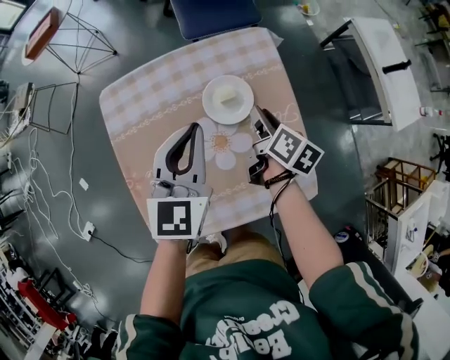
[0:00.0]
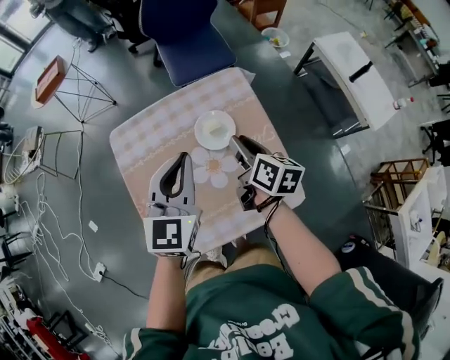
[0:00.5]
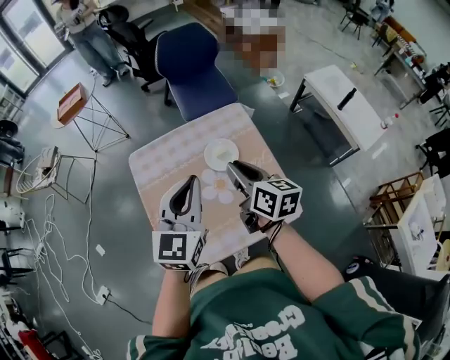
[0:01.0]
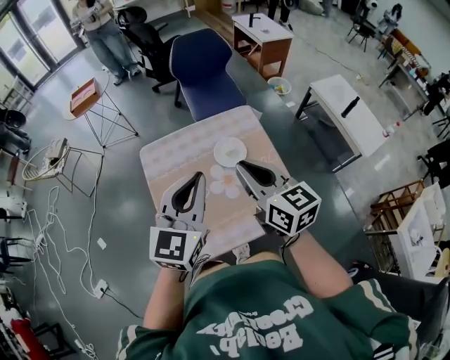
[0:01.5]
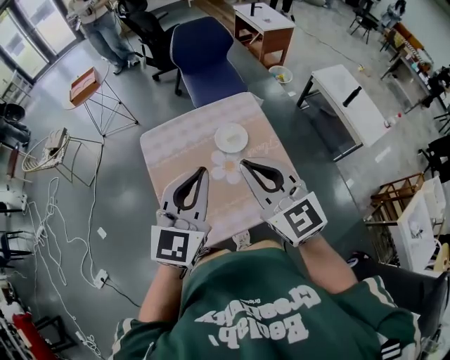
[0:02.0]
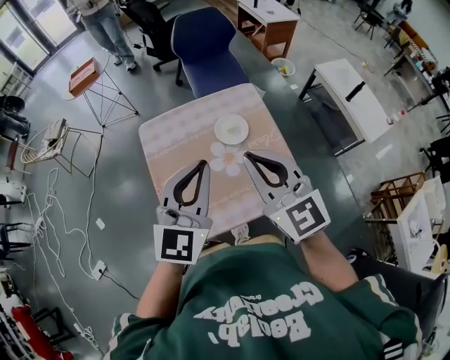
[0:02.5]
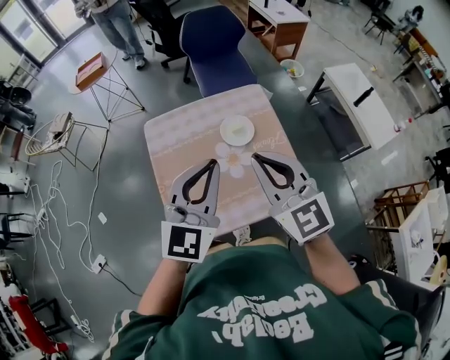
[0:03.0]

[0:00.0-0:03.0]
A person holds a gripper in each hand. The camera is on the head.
0:00.0 to 0:01.5: Both grippers travel together upward and backward, about 30 cm. The right gripper rolls counterclockwise, seen from behind, by approximately 40 degrees.
0:01.5 to 0:03.0: The right gripper swivels about 30 degrees.

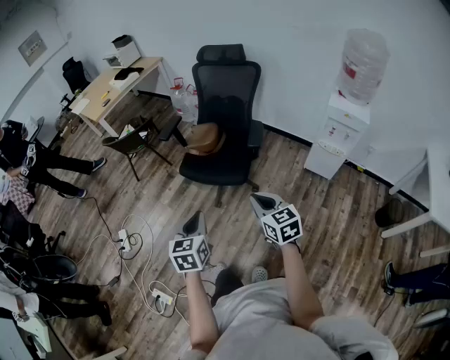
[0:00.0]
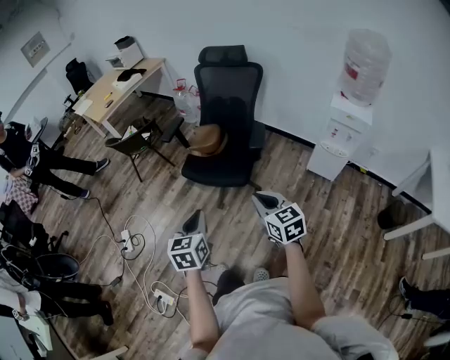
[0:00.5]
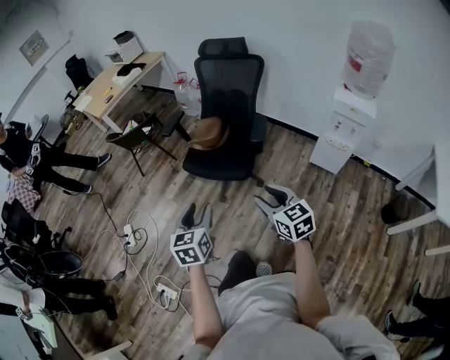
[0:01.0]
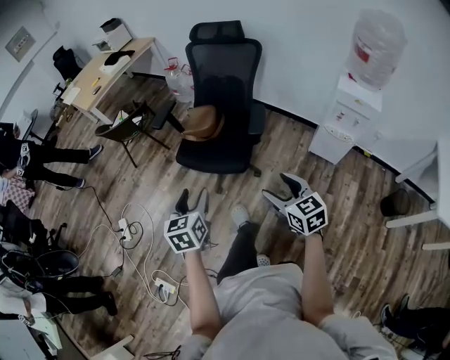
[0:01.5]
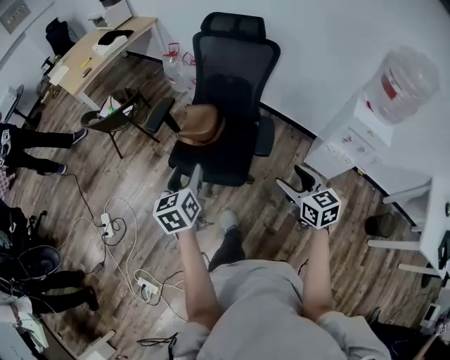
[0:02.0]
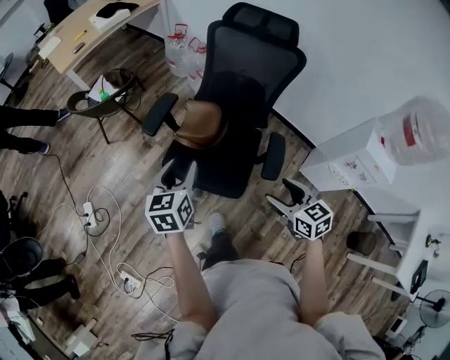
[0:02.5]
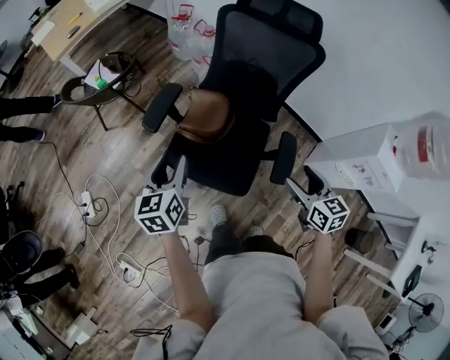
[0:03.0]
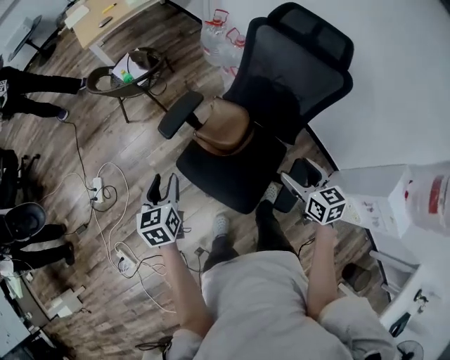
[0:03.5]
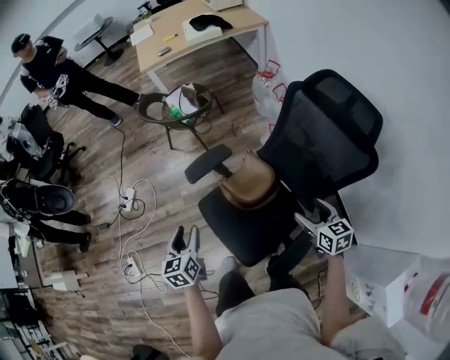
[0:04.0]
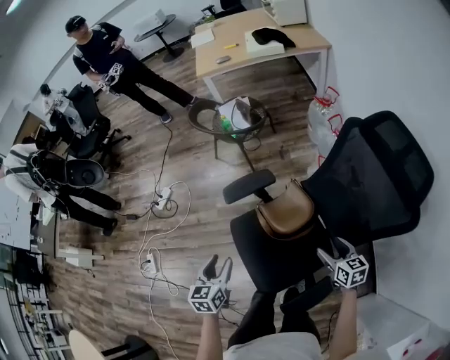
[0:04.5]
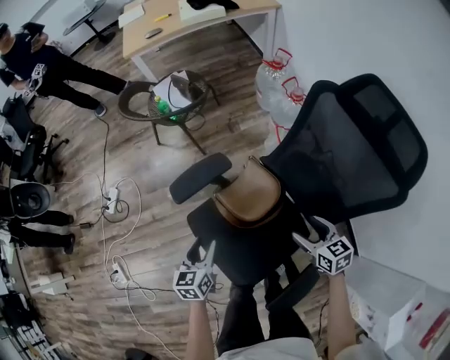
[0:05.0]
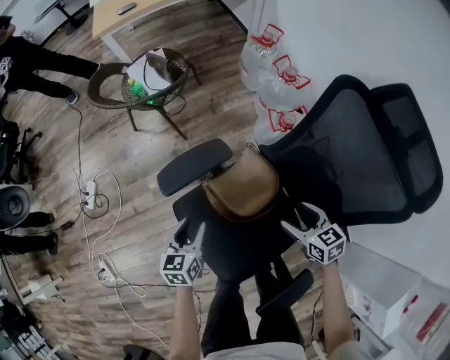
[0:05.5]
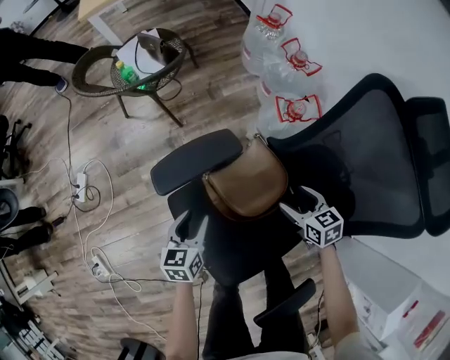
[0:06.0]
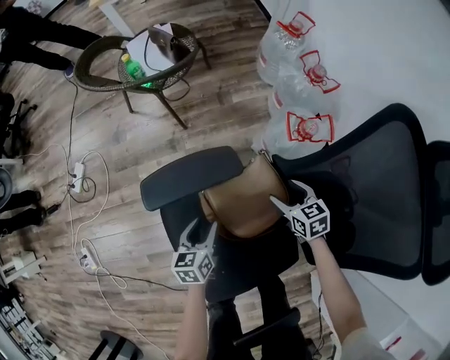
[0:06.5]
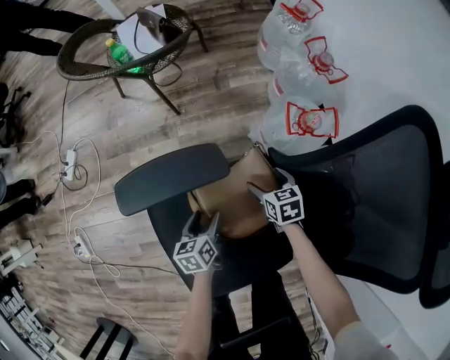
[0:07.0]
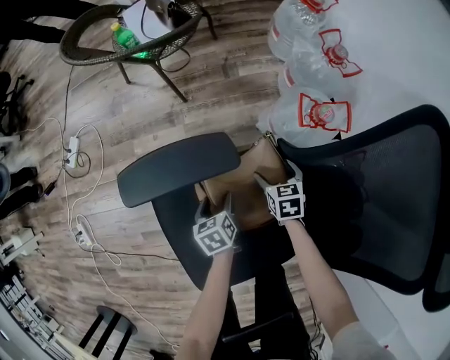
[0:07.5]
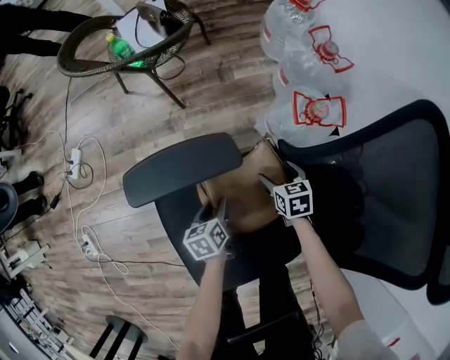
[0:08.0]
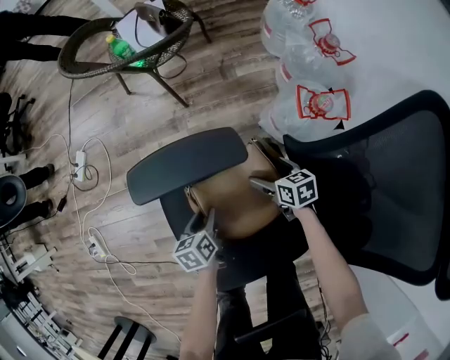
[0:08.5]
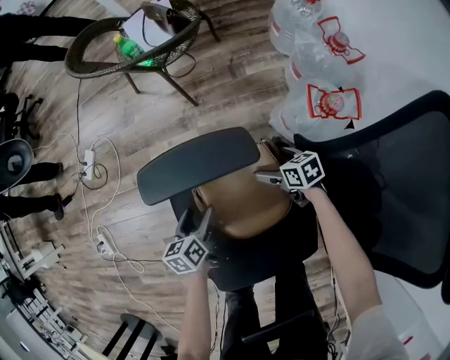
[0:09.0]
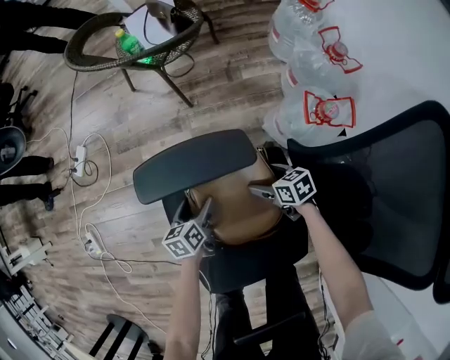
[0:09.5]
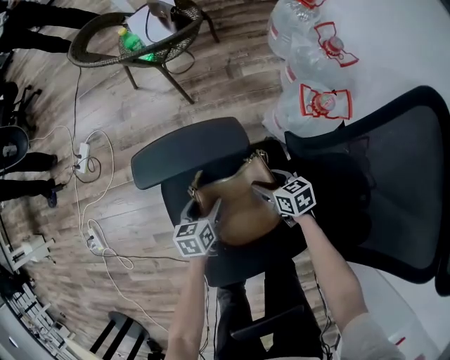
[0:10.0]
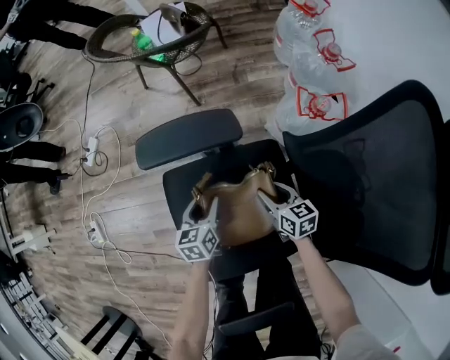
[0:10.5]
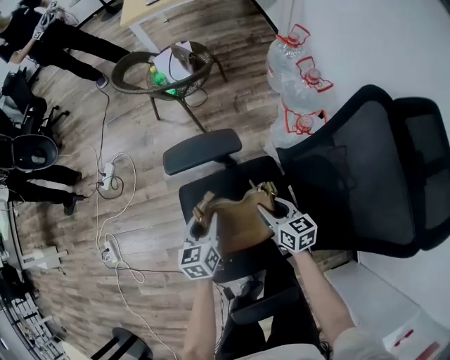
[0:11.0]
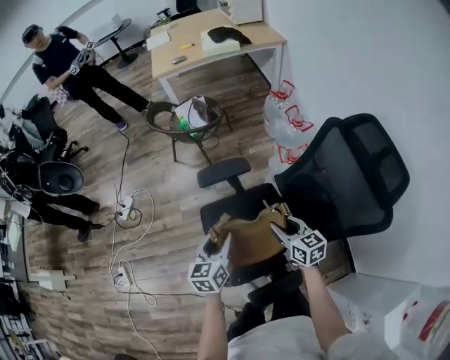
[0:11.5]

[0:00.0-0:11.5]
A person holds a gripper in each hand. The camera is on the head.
0:00.0 to 0:02.0: The right gripper heads forward and to the right, covering some 25 cm, and opens up; the left gripper travels forward by approximately 30 cm, and opens up.
0:02.0 to 0:04.0: The left gripper shifts by approximately 25 cm, and swivels about 40 degrees, while the right gripper changes place by about 50 cm, and changes its angle by some 40 degrees.
0:04.0 to 0:06.0: The grippers both shift downward and forward by some 35 cm. The left gripper turns by some 20 degrees.
0:06.0 to 0:07.5: The right gripper heads downward and forward, covering about 20 cm, while the left gripper travels downward and to the right by some 20 cm, and changes its angle by approximately 40 degrees.
0:07.5 to 0:09.5: The two grippers go about 10 cm to the left. The right gripper changes its angle by approximately 30 degrees; the left gripper closes, then reopens.
0:09.5 to 0:11.5: Both grippers travel together upward and backward, about 50 cm. The right gripper rotates approximately 40 degrees, and closes its fingers. Meanwhile the left gripper turns by some 30 degrees, and closes up.

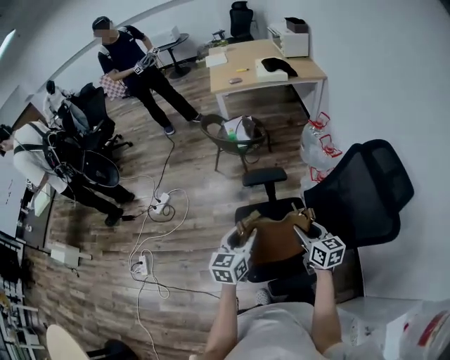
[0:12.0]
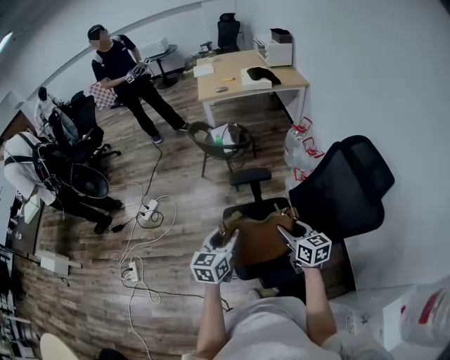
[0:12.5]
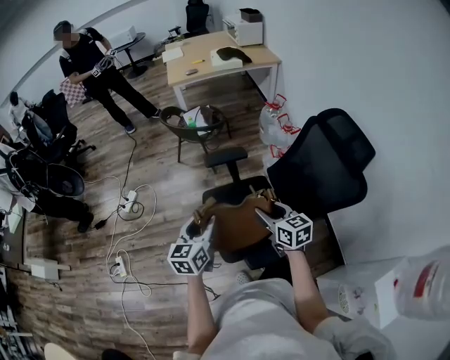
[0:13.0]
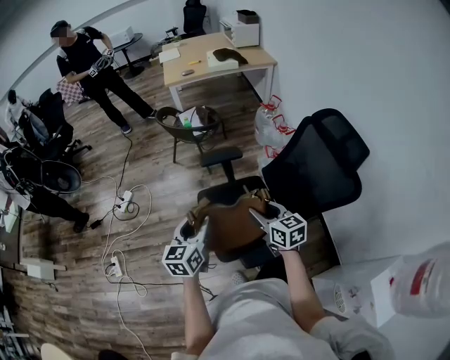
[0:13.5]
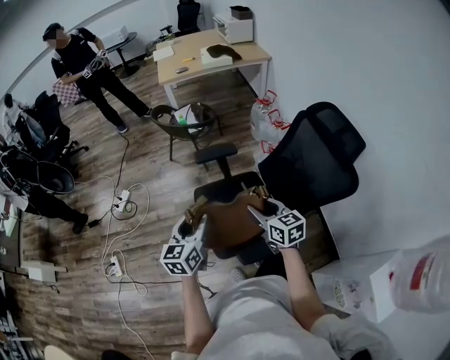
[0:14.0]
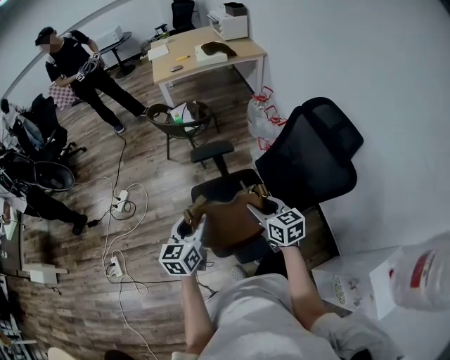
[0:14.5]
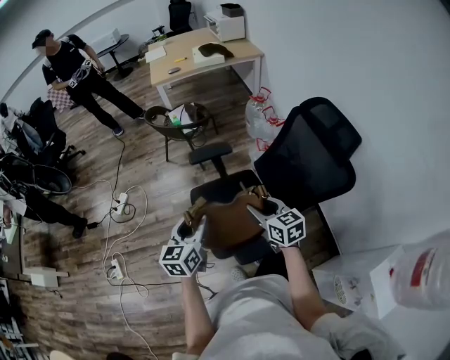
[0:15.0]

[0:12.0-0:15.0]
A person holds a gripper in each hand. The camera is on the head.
0:12.0 to 0:13.5: The grippers both shift backward by approximately 5 cm.
0:13.5 to 0:15.0: The grippers stay close to where they were, moving slightly.

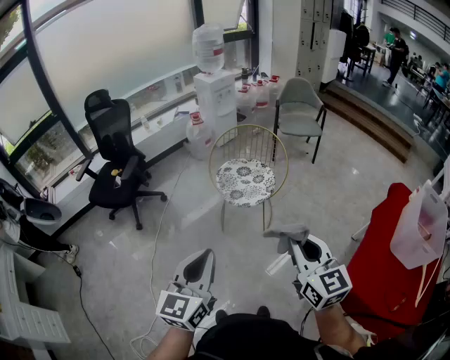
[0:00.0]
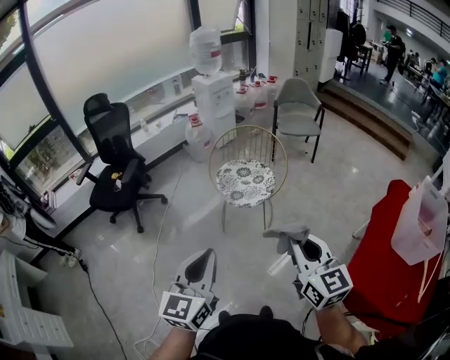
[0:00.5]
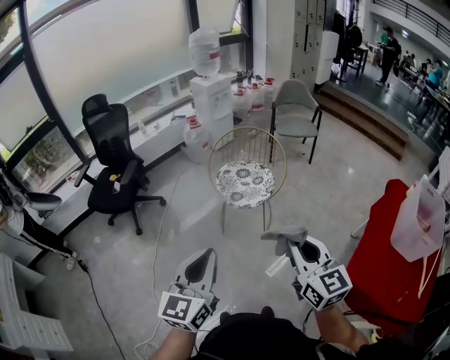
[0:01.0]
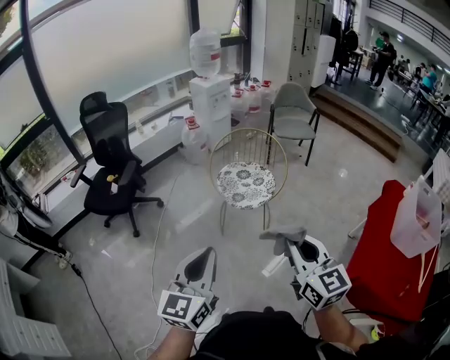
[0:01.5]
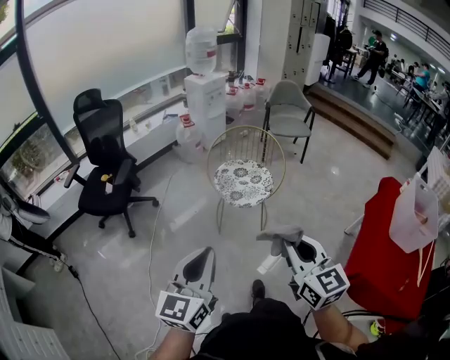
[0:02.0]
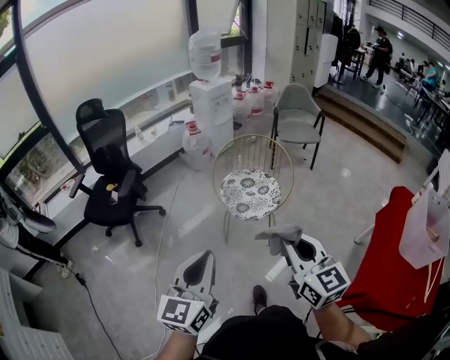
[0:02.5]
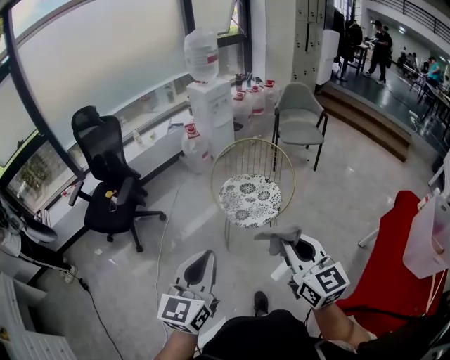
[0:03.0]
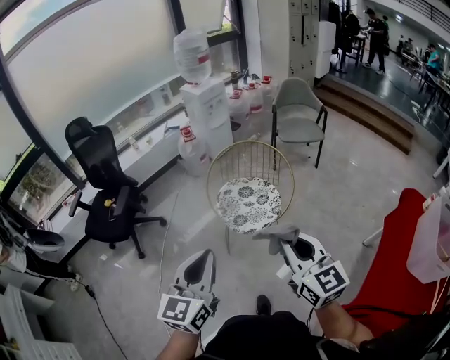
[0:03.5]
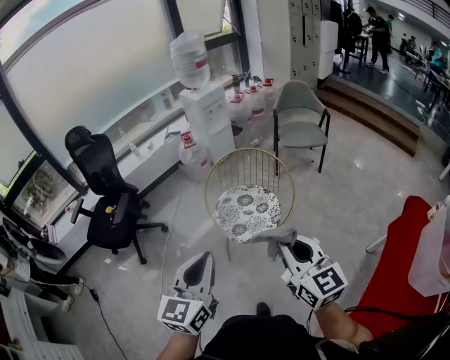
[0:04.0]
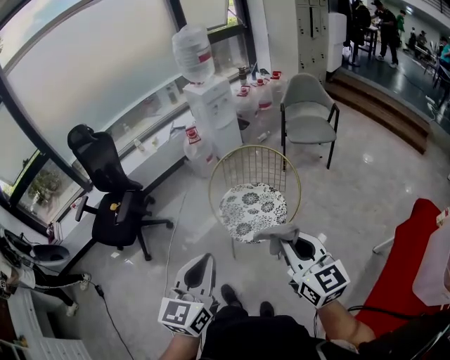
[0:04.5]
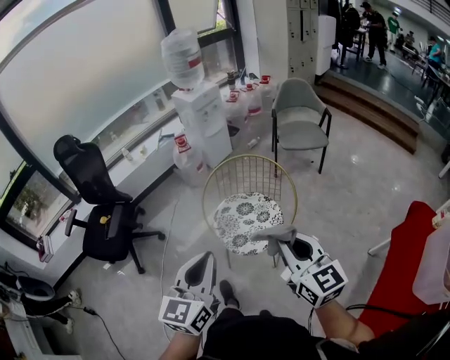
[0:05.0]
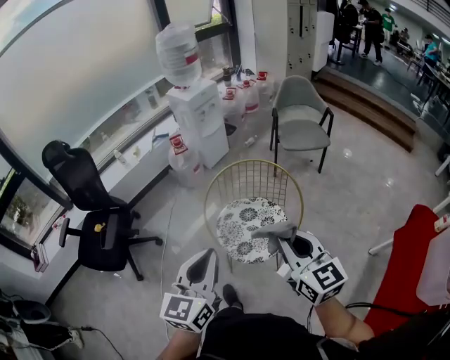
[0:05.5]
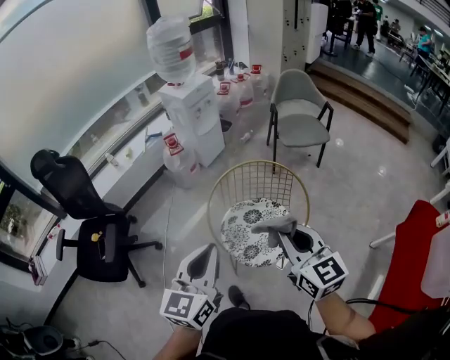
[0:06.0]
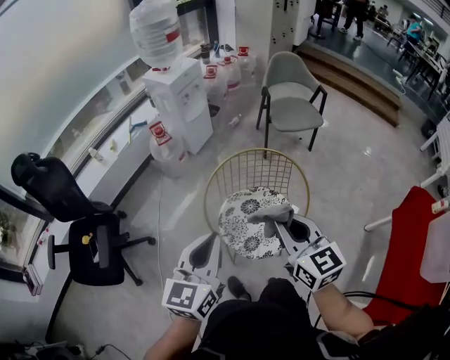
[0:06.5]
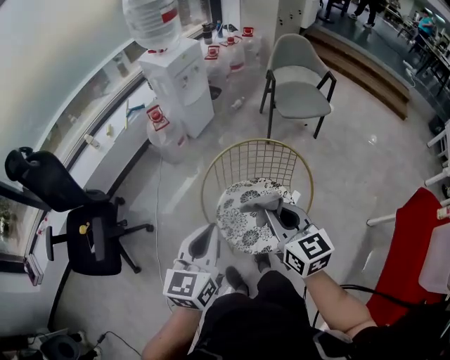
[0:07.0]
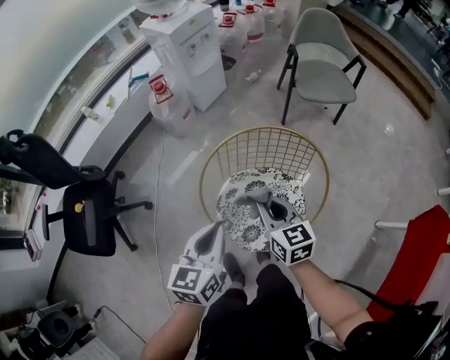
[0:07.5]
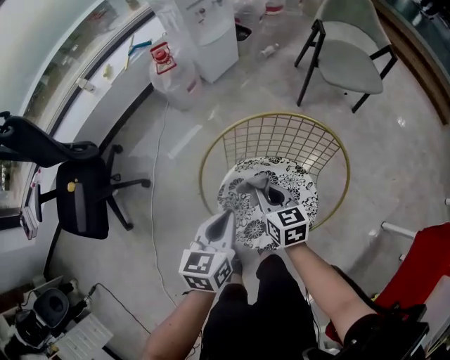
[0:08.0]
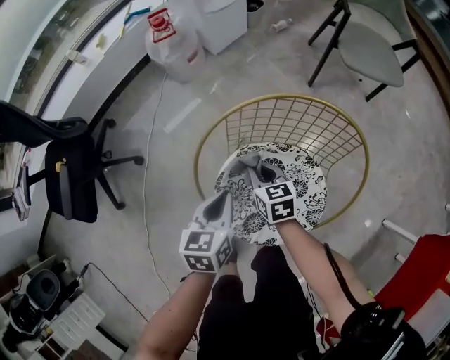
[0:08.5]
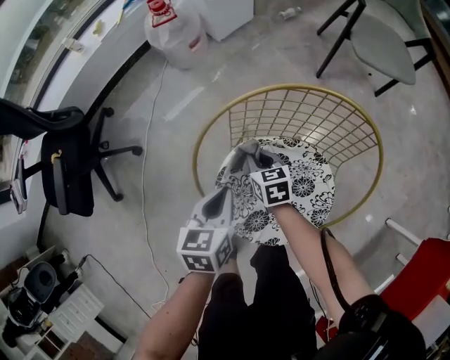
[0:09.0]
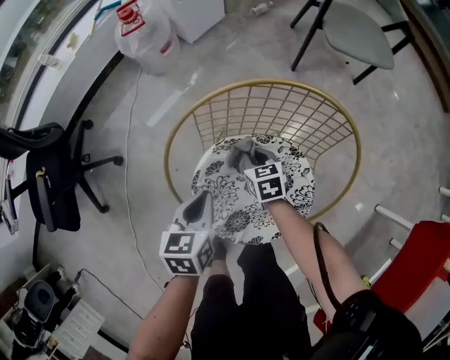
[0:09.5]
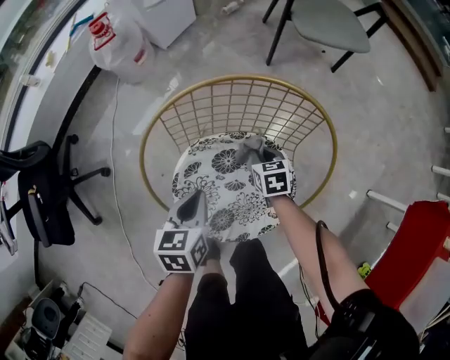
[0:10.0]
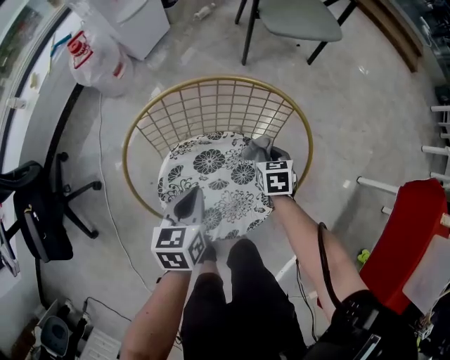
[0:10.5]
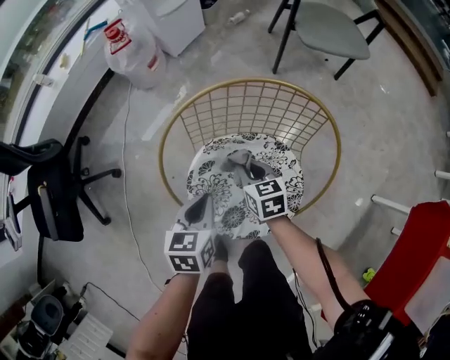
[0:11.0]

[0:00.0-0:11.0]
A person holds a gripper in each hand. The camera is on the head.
0:00.0 to 0:02.0: Both grippers move to the left, some 10 cm.
0:02.0 to 0:03.5: The right gripper travels forward by some 20 cm. Meanwhile the left gripper moves forward and to the right, roughly 20 cm.
0:03.5 to 0:05.5: The grippers both shift forward by some 25 cm.
0:05.5 to 0:07.5: The left gripper travels forward and downward by some 30 cm, and changes its angle by roughly 20 degrees; the right gripper is displaced downward and forward by roughly 35 cm, and changes its angle by about 20 degrees.
0:07.5 to 0:09.0: The grippers both shift downward by roughly 25 cm. The left gripper swivels some 20 degrees. Meanwhile the right gripper changes its angle by some 20 degrees.
